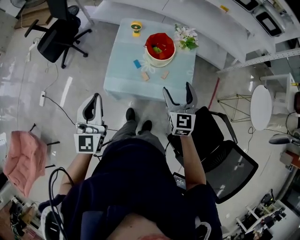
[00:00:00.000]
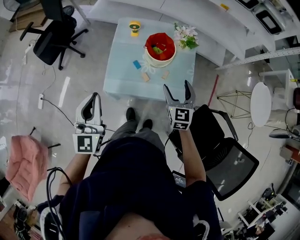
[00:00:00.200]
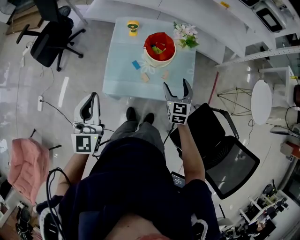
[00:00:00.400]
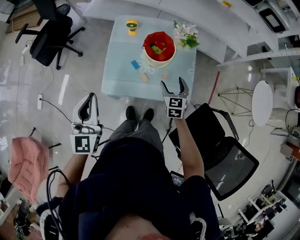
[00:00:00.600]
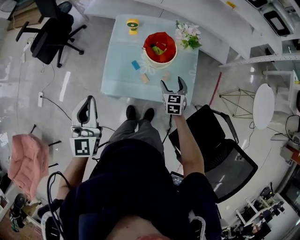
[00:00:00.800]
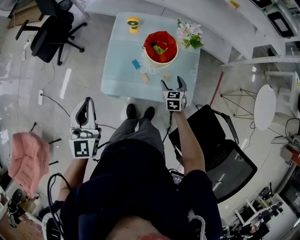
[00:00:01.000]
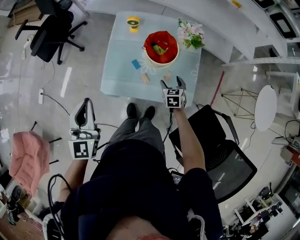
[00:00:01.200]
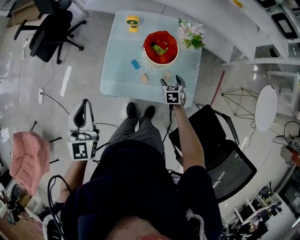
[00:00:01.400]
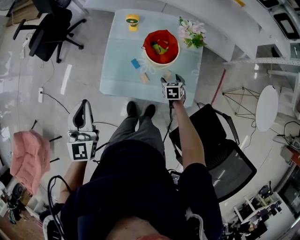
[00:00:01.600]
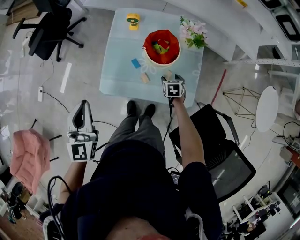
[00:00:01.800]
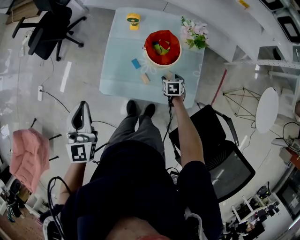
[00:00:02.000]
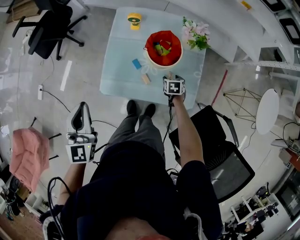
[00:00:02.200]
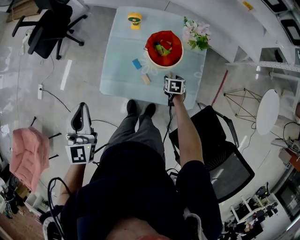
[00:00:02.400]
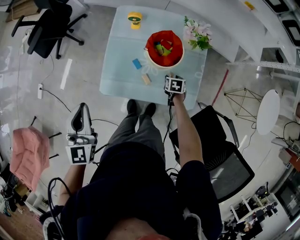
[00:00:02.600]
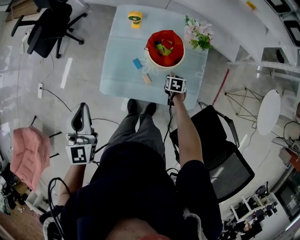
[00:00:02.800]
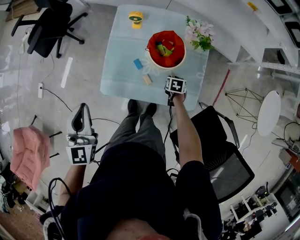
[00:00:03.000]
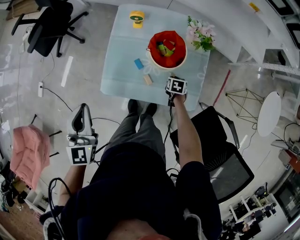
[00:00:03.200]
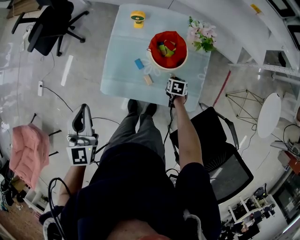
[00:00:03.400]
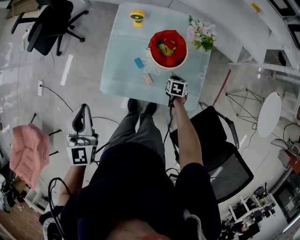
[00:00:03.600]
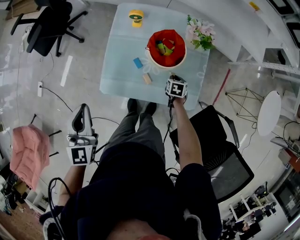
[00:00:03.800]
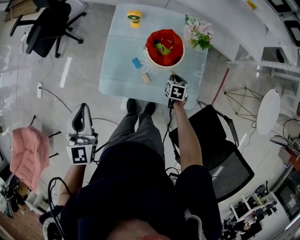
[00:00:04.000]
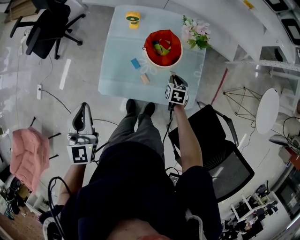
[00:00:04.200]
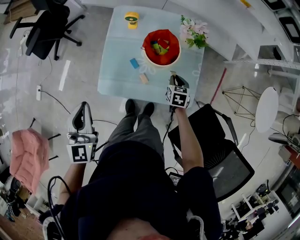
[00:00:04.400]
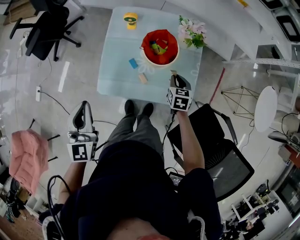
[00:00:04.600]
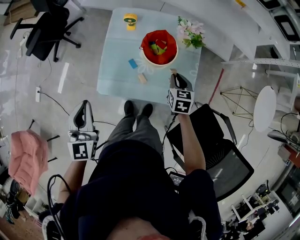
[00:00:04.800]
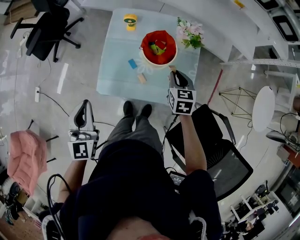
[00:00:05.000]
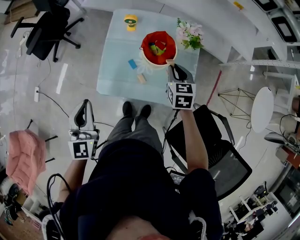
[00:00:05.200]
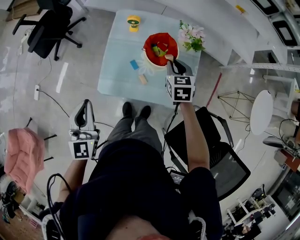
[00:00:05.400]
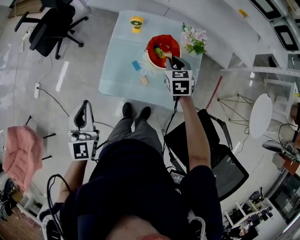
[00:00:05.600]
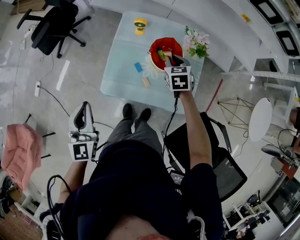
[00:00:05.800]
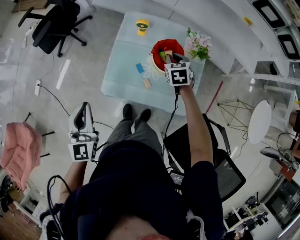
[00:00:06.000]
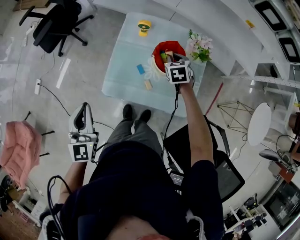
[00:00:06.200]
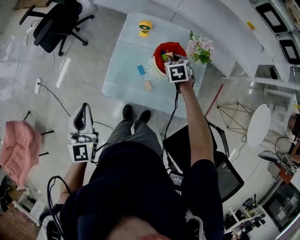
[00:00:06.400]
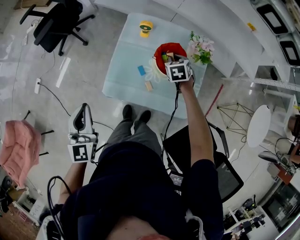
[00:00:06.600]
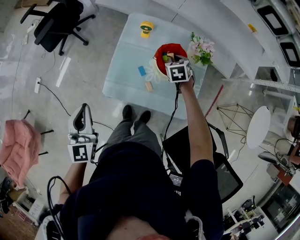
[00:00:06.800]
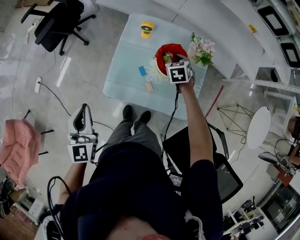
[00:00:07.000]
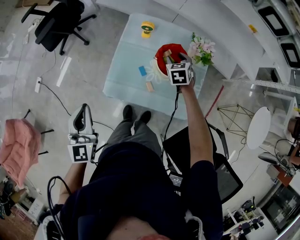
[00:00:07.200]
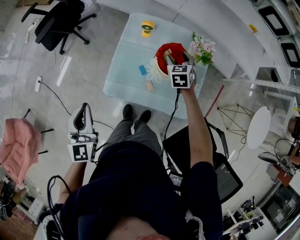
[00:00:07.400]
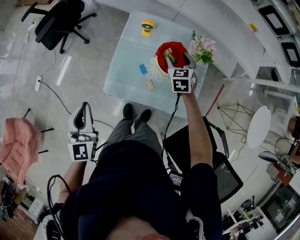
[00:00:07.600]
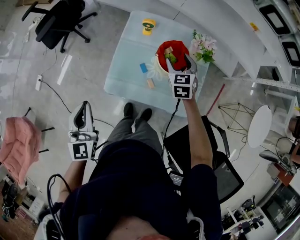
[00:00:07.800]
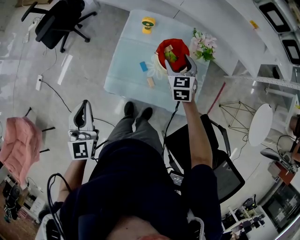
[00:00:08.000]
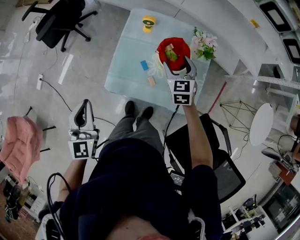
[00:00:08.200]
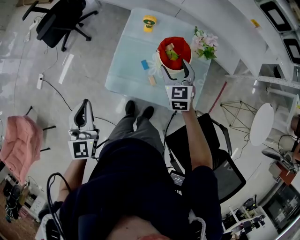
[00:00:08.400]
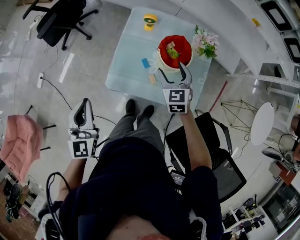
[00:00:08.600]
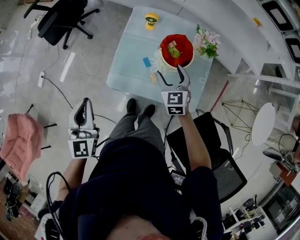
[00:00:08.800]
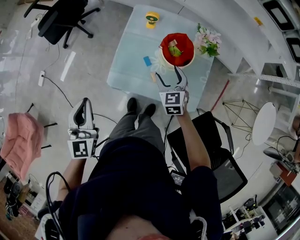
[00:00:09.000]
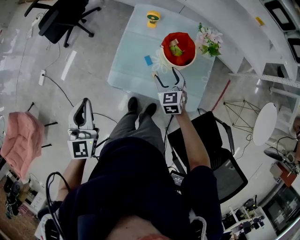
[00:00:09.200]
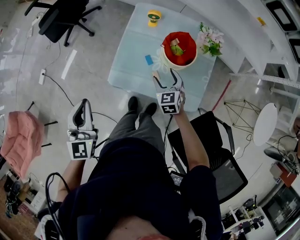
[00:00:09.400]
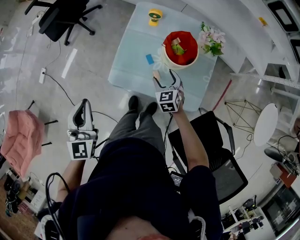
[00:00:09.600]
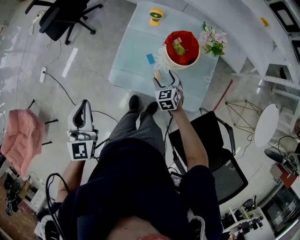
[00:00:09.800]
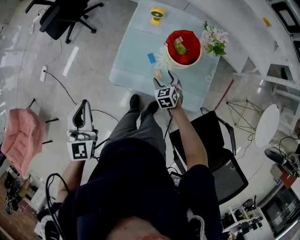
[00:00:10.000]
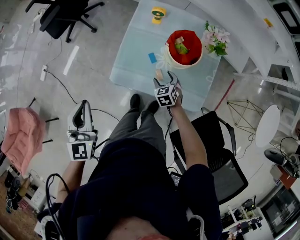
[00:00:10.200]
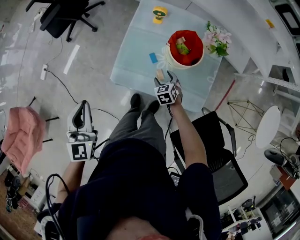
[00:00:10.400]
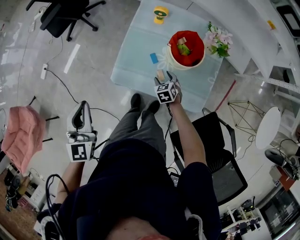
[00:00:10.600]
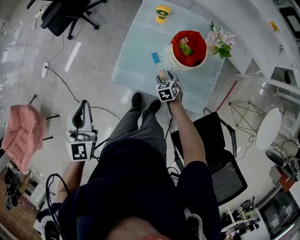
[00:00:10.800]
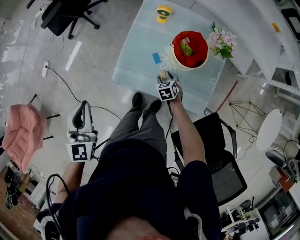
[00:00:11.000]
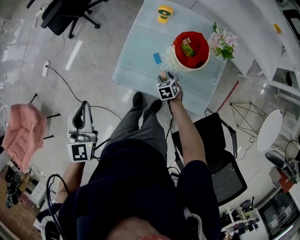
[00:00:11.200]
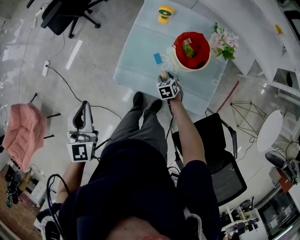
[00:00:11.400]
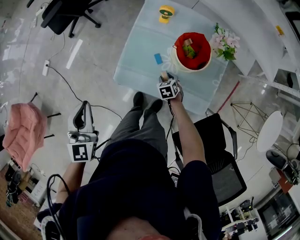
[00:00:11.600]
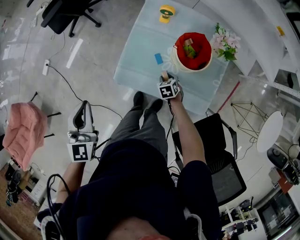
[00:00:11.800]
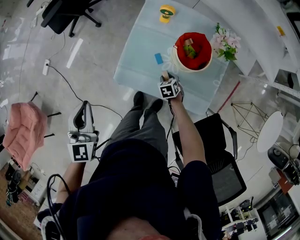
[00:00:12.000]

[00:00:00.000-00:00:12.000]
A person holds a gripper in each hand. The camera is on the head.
00:00:00.000 to 00:00:01.600: The right gripper is displaced downward by some 30 cm, and angles its fingers downward, by approximately 40 degrees; the left gripper goes about 10 cm forward and downward.
00:00:01.600 to 00:00:03.000: The right gripper heads downward, covering about 5 cm, and closes.
00:00:03.000 to 00:00:04.400: The right gripper travels upward by some 10 cm.
00:00:04.400 to 00:00:06.000: The right gripper moves forward, upward and to the left, some 20 cm, and swivels approximately 20 degrees.
00:00:06.000 to 00:00:07.600: The right gripper opens up.
00:00:07.600 to 00:00:09.000: The right gripper goes some 15 cm backward and to the left.
00:00:09.000 to 00:00:10.400: The right gripper moves downward, some 20 cm, and rotates some 20 degrees.
00:00:10.400 to 00:00:12.000: The right gripper heads downward, covering some 5 cm, and closes up.

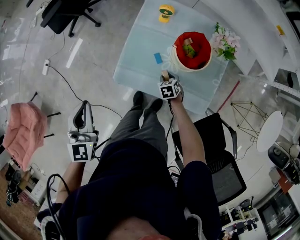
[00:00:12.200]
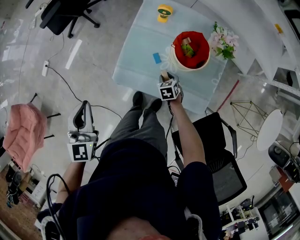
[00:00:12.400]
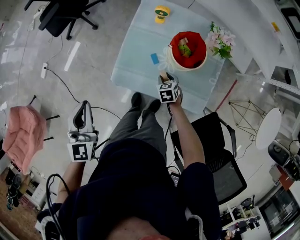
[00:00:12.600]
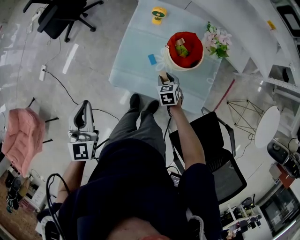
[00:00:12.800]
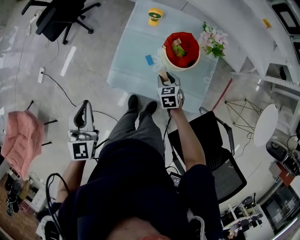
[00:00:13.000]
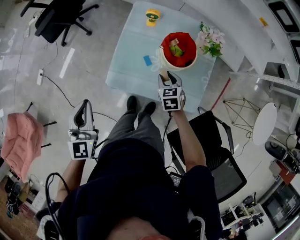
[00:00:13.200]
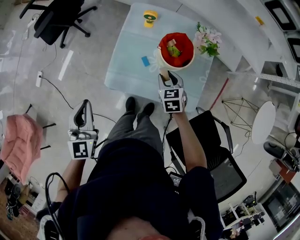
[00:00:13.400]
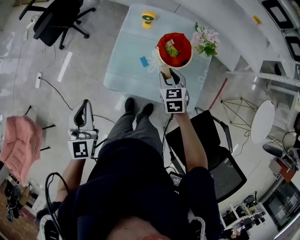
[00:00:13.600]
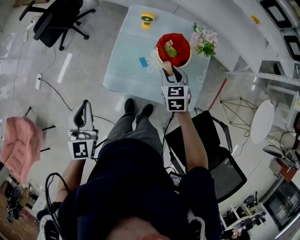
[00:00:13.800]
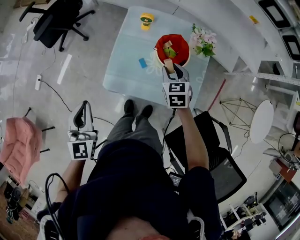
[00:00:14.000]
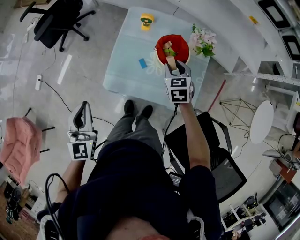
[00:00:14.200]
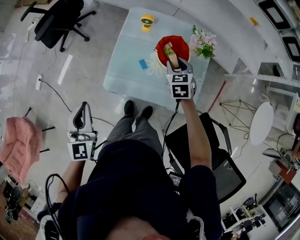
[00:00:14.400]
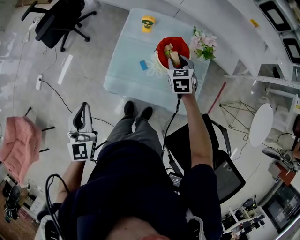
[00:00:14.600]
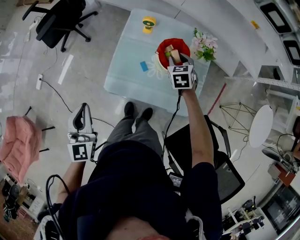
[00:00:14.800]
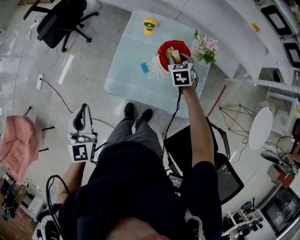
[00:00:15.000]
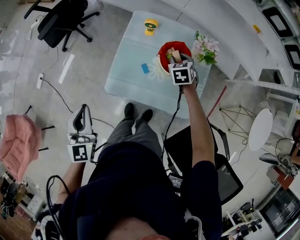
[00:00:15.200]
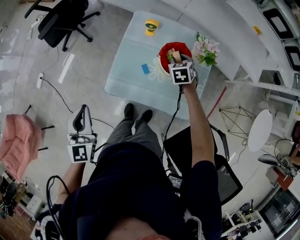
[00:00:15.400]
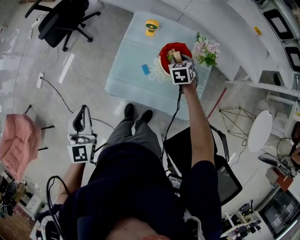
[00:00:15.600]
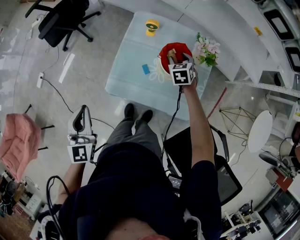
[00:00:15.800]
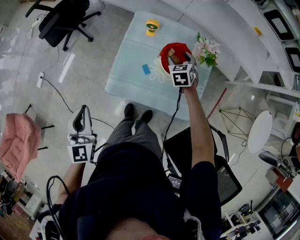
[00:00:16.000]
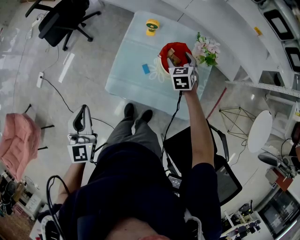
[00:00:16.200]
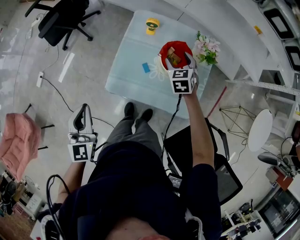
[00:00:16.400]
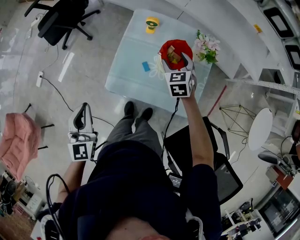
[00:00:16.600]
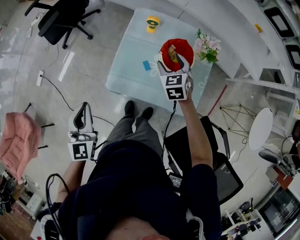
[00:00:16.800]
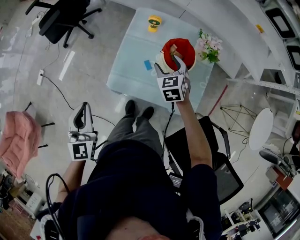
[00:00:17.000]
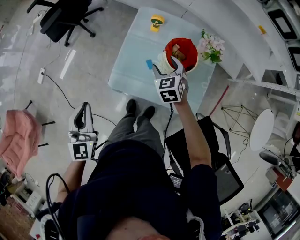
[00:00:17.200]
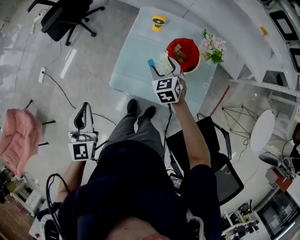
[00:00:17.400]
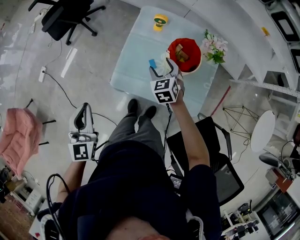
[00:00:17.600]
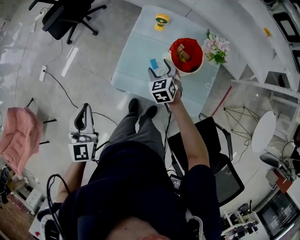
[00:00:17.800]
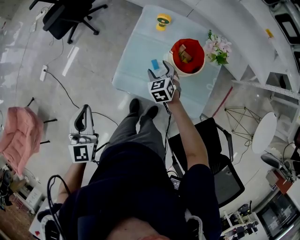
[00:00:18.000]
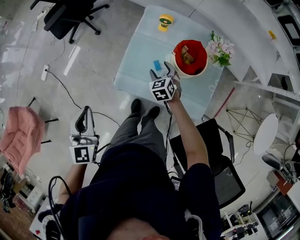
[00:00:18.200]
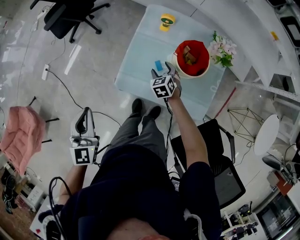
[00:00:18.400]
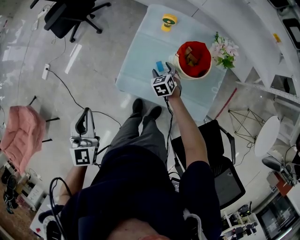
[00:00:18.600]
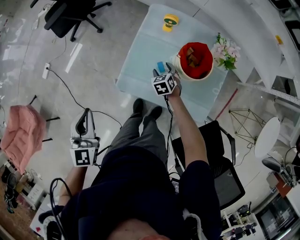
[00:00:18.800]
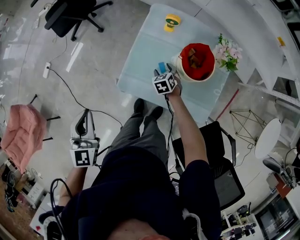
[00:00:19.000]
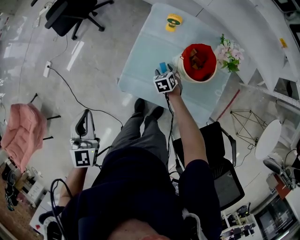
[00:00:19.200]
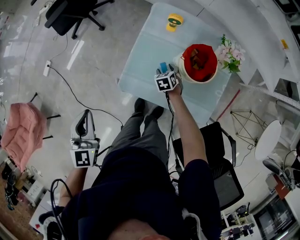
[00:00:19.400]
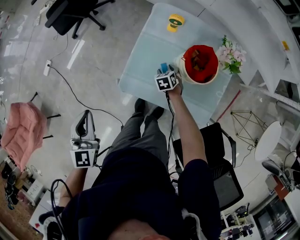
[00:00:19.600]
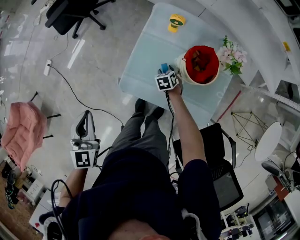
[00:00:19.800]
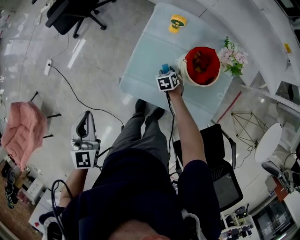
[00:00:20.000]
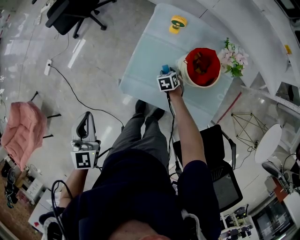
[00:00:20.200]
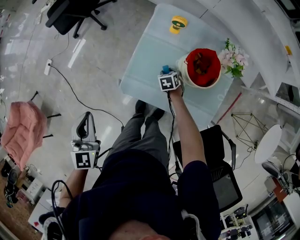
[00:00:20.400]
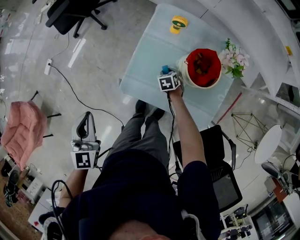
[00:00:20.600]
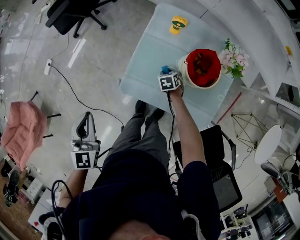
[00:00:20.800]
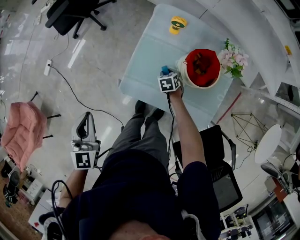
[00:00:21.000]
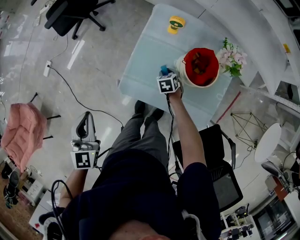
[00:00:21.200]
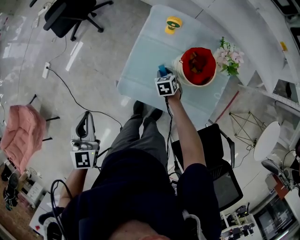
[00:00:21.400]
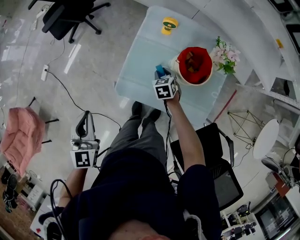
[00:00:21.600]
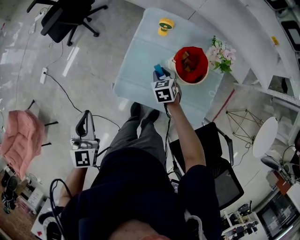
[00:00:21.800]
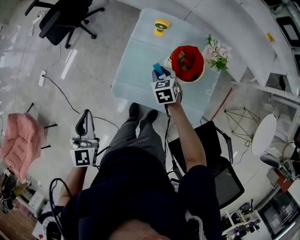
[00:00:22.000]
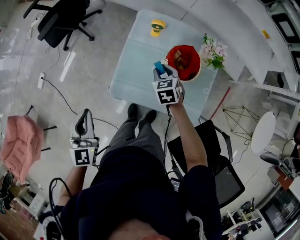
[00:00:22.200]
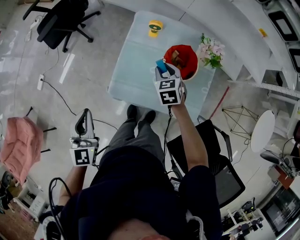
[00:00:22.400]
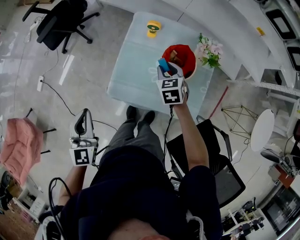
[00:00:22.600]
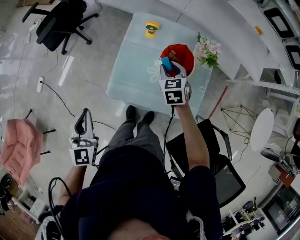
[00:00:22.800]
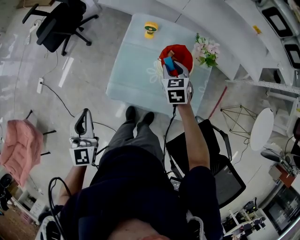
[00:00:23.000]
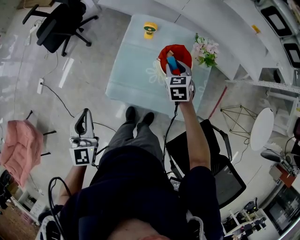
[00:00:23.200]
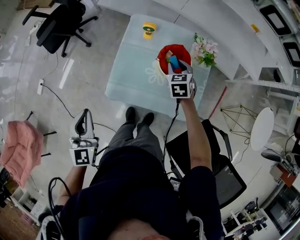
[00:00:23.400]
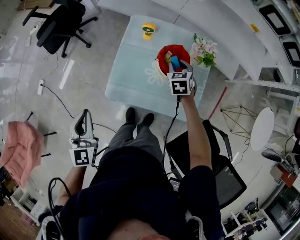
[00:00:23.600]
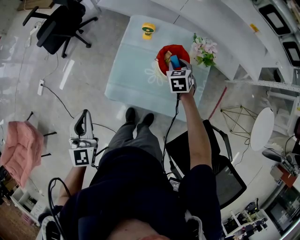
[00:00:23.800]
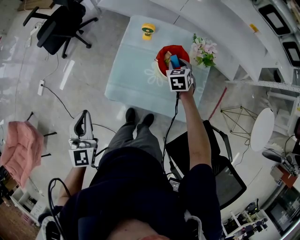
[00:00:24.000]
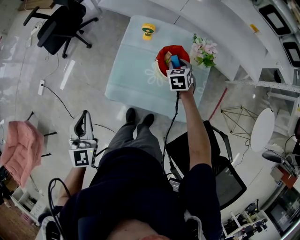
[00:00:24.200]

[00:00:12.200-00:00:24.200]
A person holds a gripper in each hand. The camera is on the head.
00:00:12.200 to 00:00:13.800: The right gripper is displaced upward by approximately 25 cm, and rotates approximately 20 degrees.
00:00:13.800 to 00:00:15.200: The right gripper moves forward, approximately 10 cm.
00:00:15.200 to 00:00:16.600: The right gripper shifts about 5 cm upward, and opens its fingers.
00:00:16.600 to 00:00:18.200: The right gripper goes some 15 cm downward and to the left.
00:00:18.200 to 00:00:19.800: The right gripper goes some 15 cm downward.
00:00:19.800 to 00:00:21.200: The grippers make only small movements.
00:00:21.200 to 00:00:22.600: The left gripper shifts by some 5 cm, while the right gripper moves upward, roughly 25 cm.
00:00:22.600 to 00:00:24.200: The right gripper shifts some 10 cm to the right.
